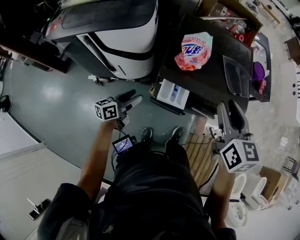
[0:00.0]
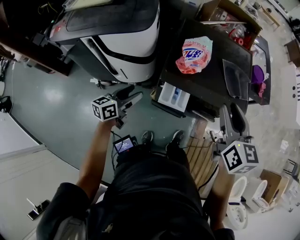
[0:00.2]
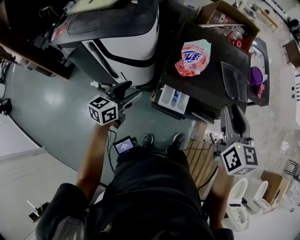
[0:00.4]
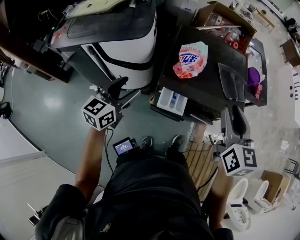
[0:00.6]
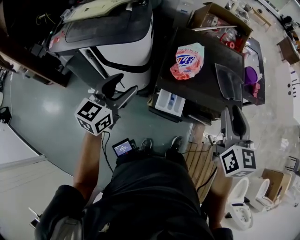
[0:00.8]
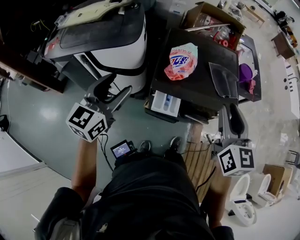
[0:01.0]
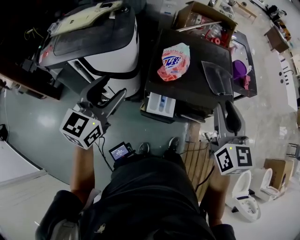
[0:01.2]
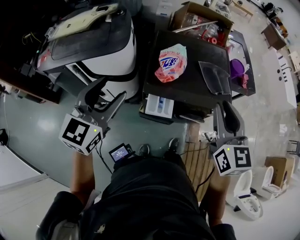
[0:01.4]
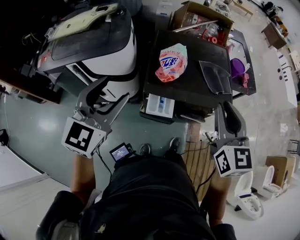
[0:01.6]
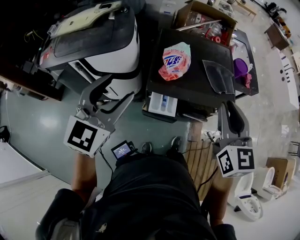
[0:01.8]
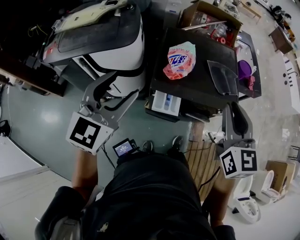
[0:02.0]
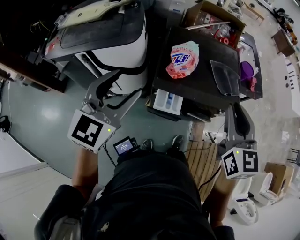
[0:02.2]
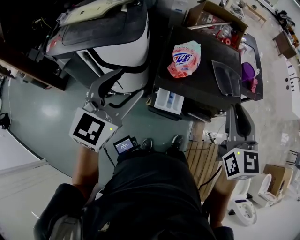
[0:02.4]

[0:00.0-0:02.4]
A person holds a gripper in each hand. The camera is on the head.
0:00.0 to 0:01.2: The left gripper travels upward by roughly 30 cm, and twists roughly 50 degrees clockwise, seen from behind. The right gripper travels upward by approximately 5 cm.
0:01.2 to 0:02.4: There are only small adjustments of the grippers.

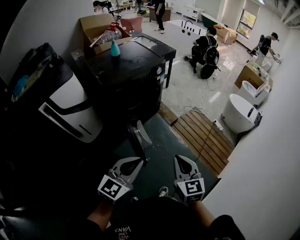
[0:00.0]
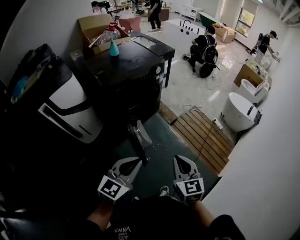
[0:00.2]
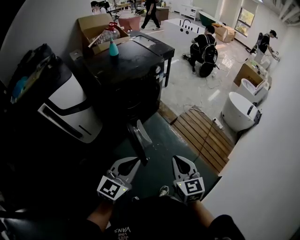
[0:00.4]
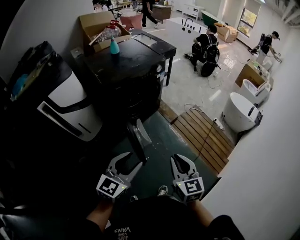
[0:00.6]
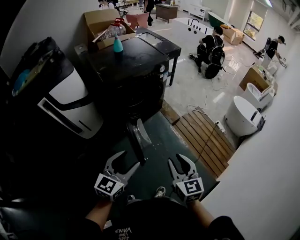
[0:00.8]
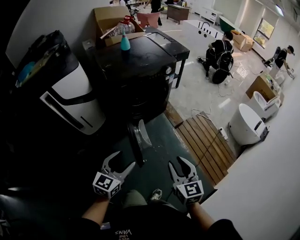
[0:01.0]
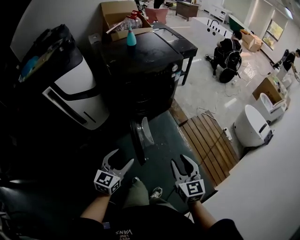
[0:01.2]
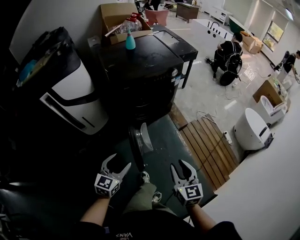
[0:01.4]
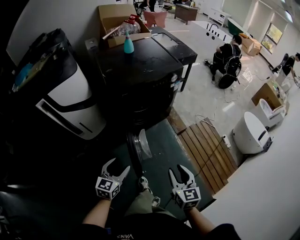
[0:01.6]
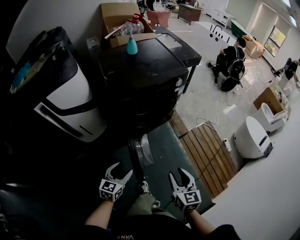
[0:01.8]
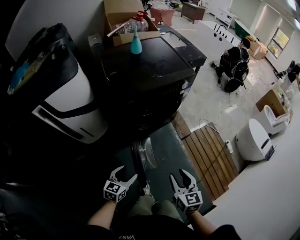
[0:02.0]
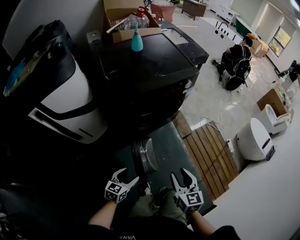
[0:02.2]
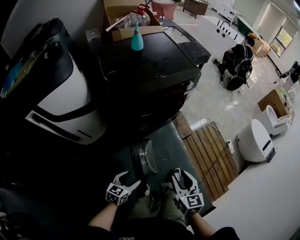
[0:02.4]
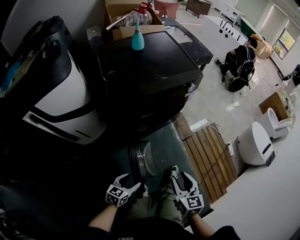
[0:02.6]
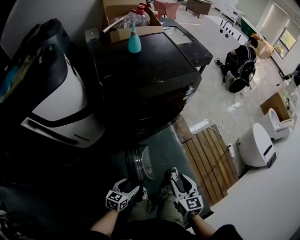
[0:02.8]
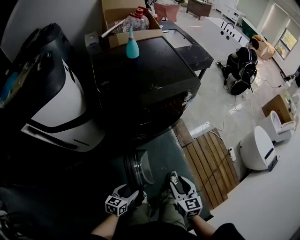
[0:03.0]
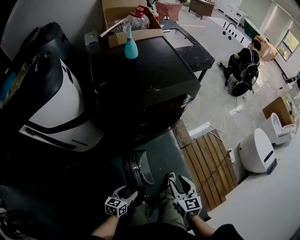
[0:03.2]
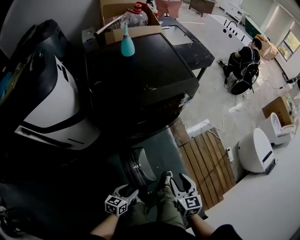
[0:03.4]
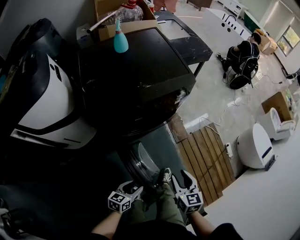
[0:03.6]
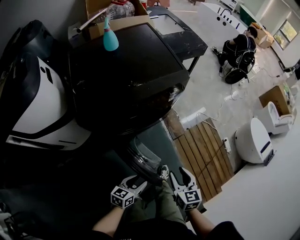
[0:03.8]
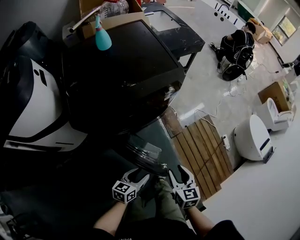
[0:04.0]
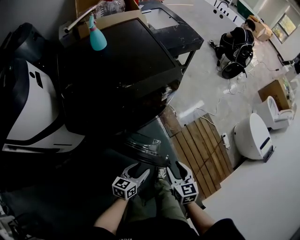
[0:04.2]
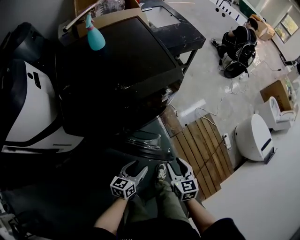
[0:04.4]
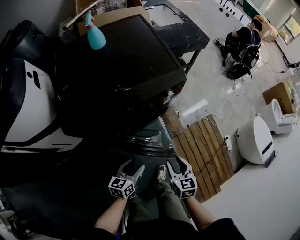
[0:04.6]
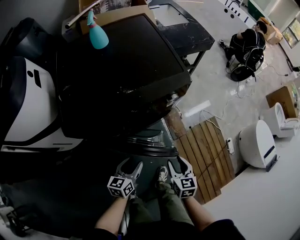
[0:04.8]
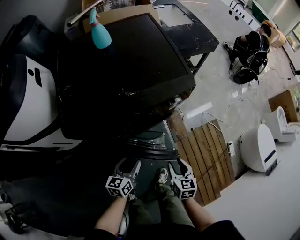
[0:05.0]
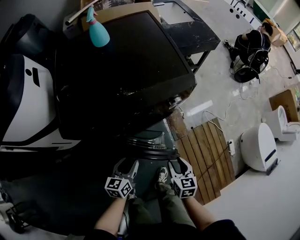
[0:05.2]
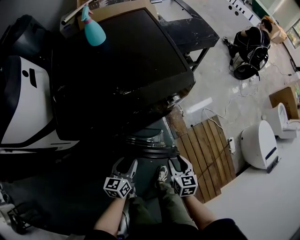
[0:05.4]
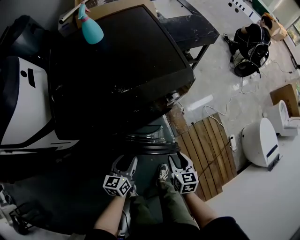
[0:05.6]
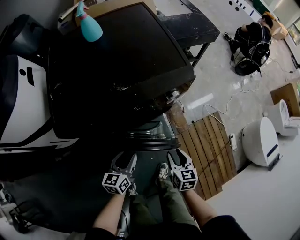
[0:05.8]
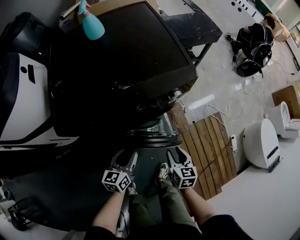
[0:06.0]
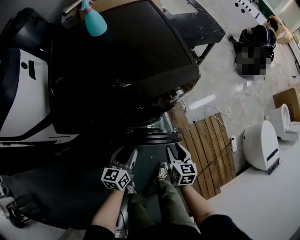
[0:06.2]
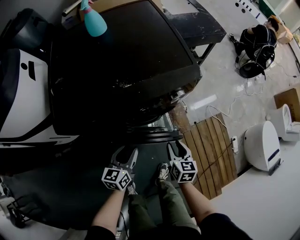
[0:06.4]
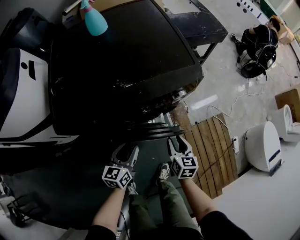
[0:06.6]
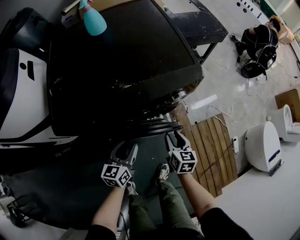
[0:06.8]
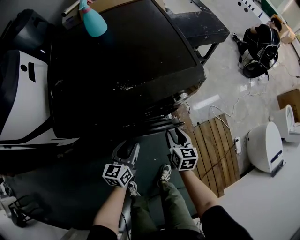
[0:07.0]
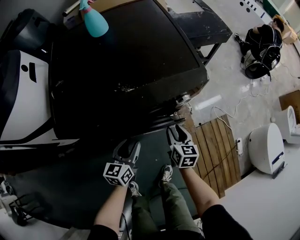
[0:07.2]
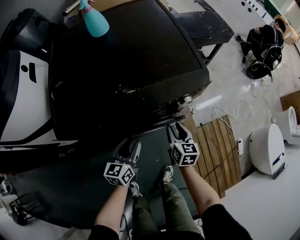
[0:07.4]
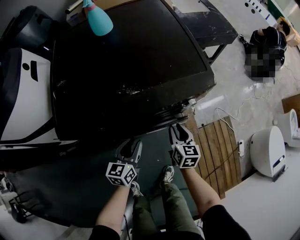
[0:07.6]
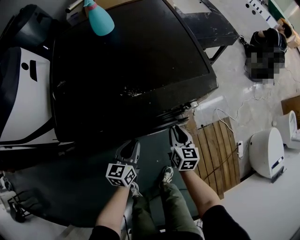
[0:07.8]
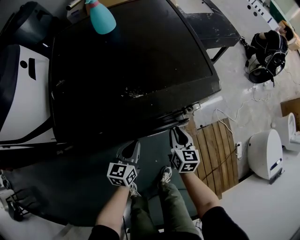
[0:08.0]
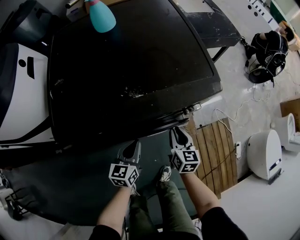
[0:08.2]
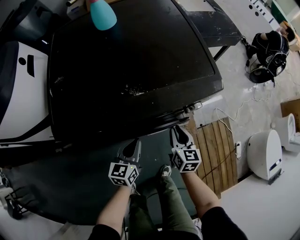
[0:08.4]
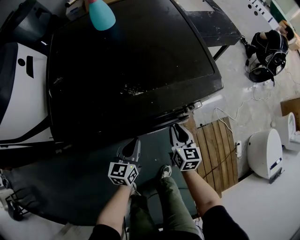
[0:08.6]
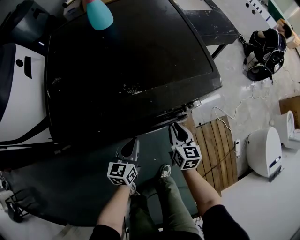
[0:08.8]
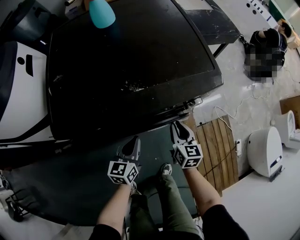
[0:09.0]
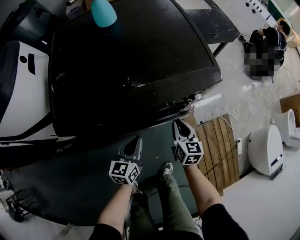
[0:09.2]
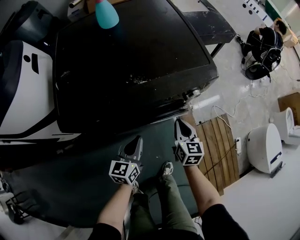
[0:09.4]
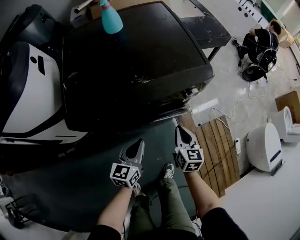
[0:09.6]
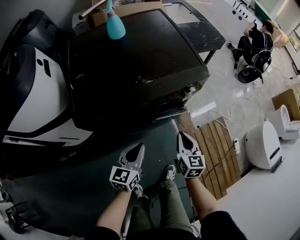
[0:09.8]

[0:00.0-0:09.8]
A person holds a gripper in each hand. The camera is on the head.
0:00.0 to 0:01.4: The left gripper shifts about 15 cm downward, forward and to the left, swivels roughly 30 degrees, and opens. Meanwhile the right gripper travels forward and downward by roughly 10 cm, and opens its fingers.
0:01.4 to 0:02.8: The right gripper heads forward and downward, covering roughly 20 cm. Meanwhile the left gripper travels downward and forward by approximately 20 cm, and rotates approximately 30 degrees.
0:02.8 to 0:04.2: The two grippers go about 20 cm forward and to the right.
0:04.2 to 0:05.6: The left gripper shifts about 15 cm forward and to the left, and changes its angle by some 20 degrees; the right gripper shifts some 15 cm forward and downward.
0:05.6 to 0:07.0: The left gripper moves forward, some 5 cm, while the right gripper heads forward, covering some 15 cm.
0:07.0 to 0:08.4: The left gripper closes its fingers. Meanwhile the right gripper closes.
0:08.4 to 0:09.8: The left gripper heads upward and backward, covering about 15 cm; the right gripper is displaced backward and upward by roughly 15 cm.

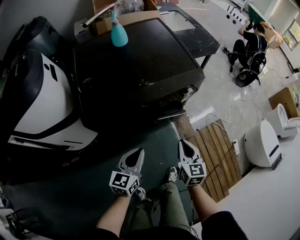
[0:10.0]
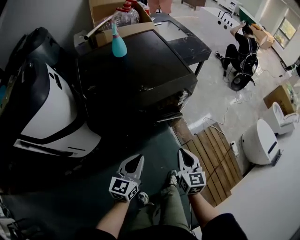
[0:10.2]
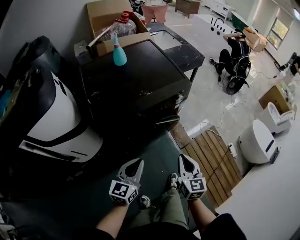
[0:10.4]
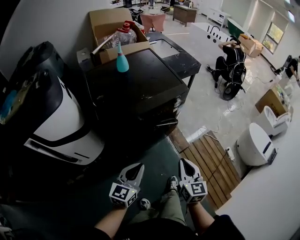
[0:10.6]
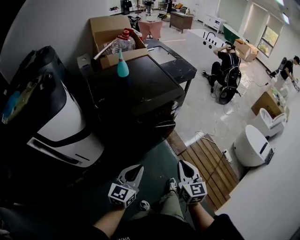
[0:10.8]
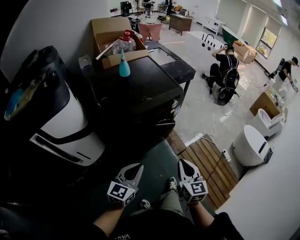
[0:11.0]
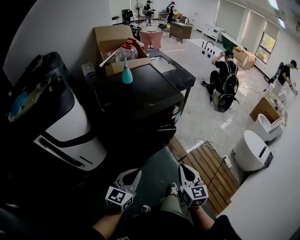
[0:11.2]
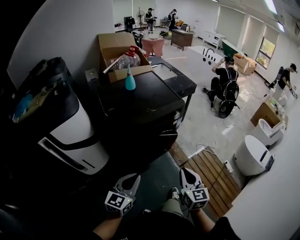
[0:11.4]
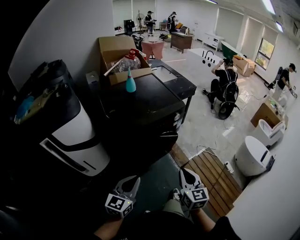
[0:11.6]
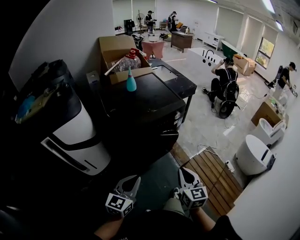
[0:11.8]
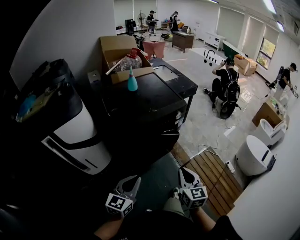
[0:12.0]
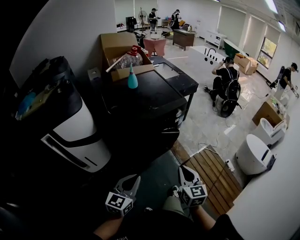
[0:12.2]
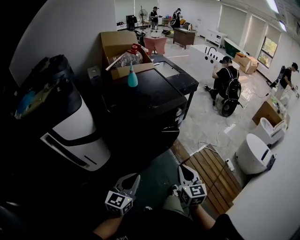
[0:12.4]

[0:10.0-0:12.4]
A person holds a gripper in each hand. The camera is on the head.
0:10.0 to 0:11.2: The two grippers go approximately 25 cm backward and upward.
0:11.2 to 0:12.4: The grippers move only a little.

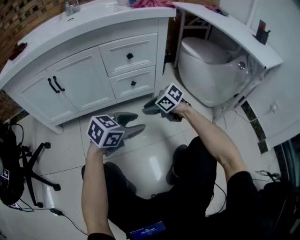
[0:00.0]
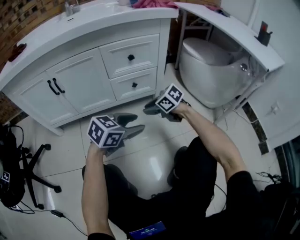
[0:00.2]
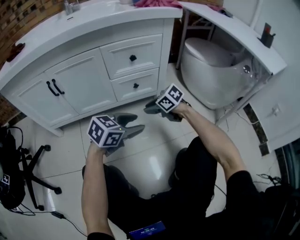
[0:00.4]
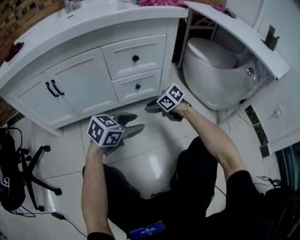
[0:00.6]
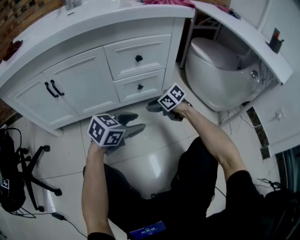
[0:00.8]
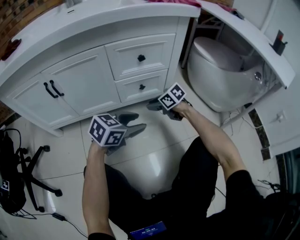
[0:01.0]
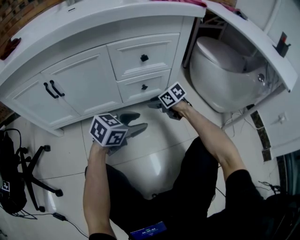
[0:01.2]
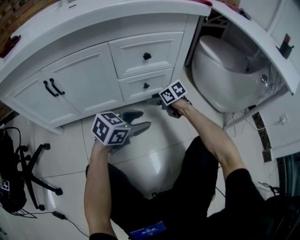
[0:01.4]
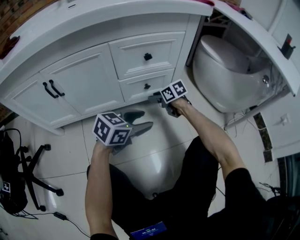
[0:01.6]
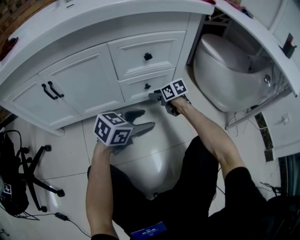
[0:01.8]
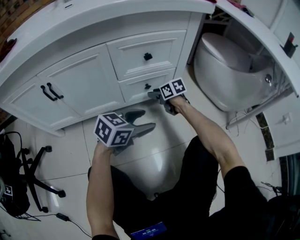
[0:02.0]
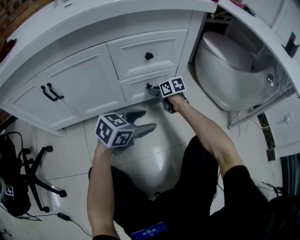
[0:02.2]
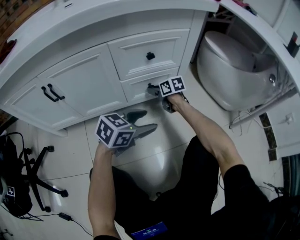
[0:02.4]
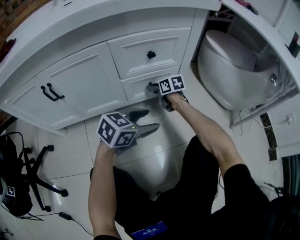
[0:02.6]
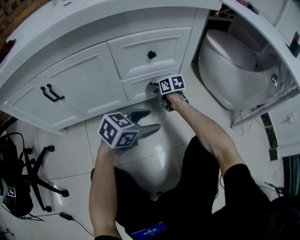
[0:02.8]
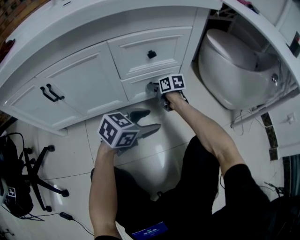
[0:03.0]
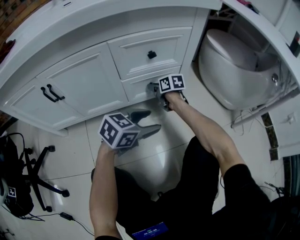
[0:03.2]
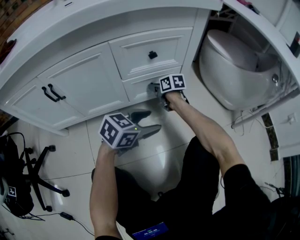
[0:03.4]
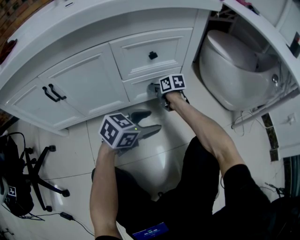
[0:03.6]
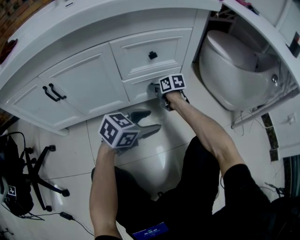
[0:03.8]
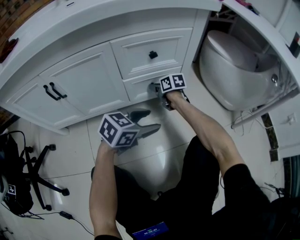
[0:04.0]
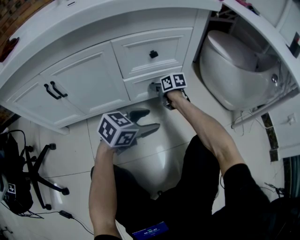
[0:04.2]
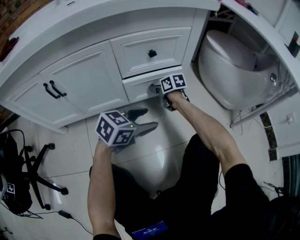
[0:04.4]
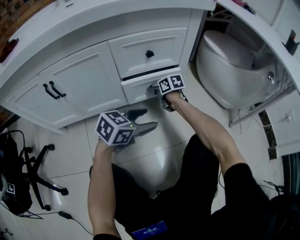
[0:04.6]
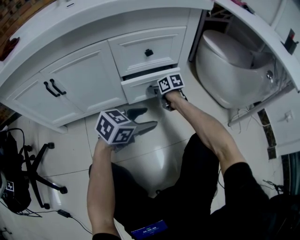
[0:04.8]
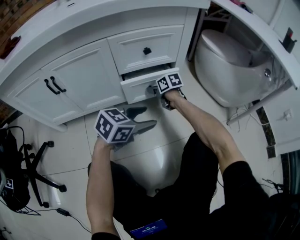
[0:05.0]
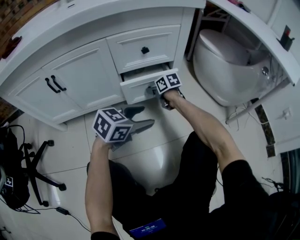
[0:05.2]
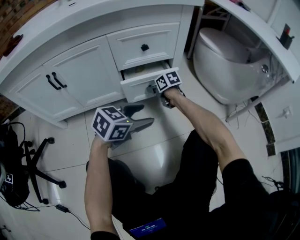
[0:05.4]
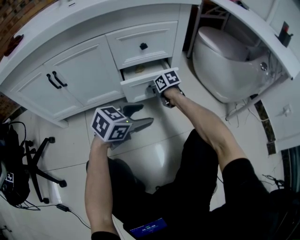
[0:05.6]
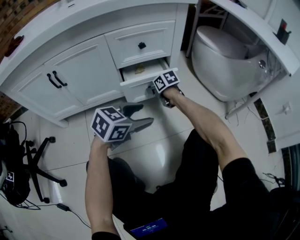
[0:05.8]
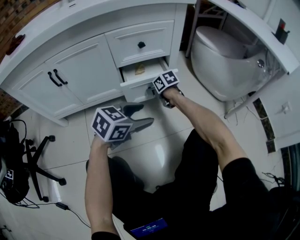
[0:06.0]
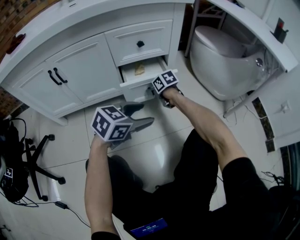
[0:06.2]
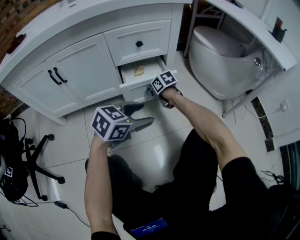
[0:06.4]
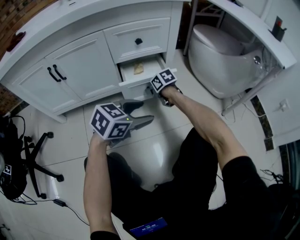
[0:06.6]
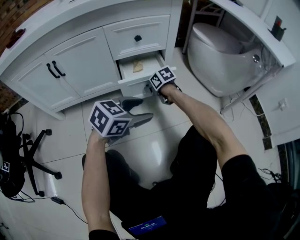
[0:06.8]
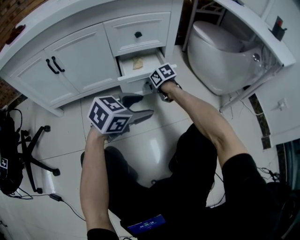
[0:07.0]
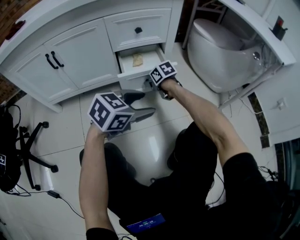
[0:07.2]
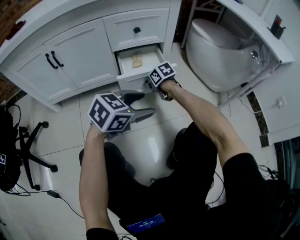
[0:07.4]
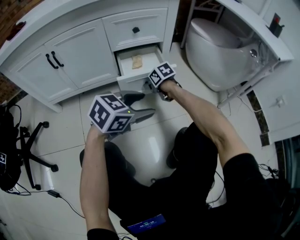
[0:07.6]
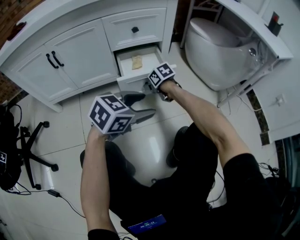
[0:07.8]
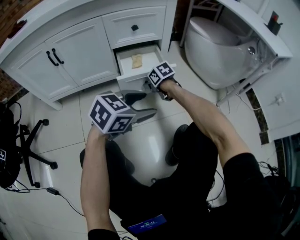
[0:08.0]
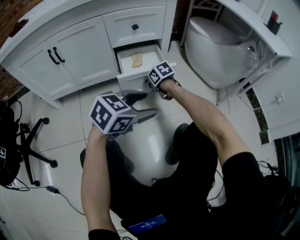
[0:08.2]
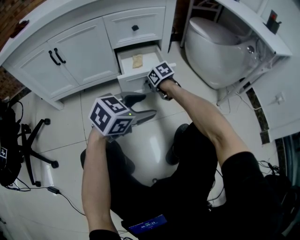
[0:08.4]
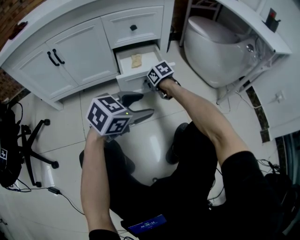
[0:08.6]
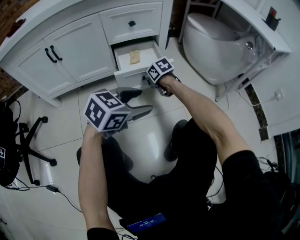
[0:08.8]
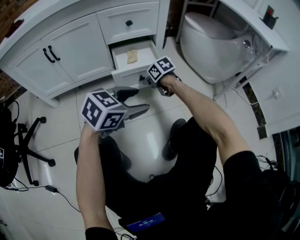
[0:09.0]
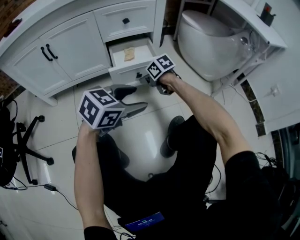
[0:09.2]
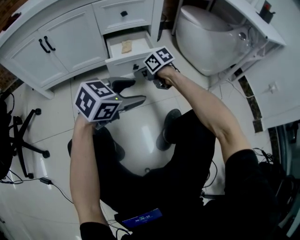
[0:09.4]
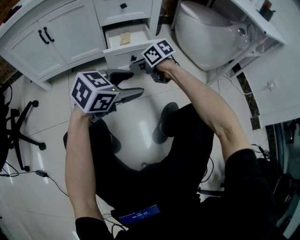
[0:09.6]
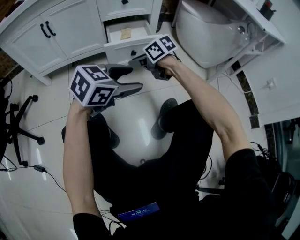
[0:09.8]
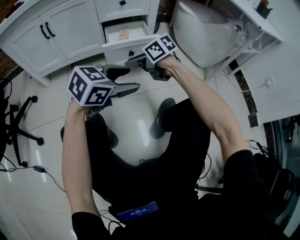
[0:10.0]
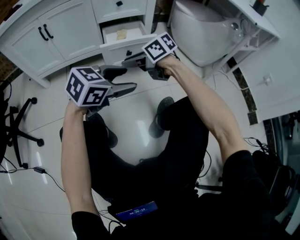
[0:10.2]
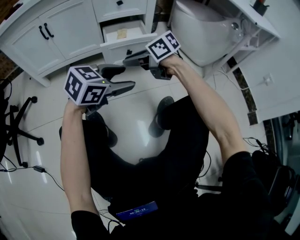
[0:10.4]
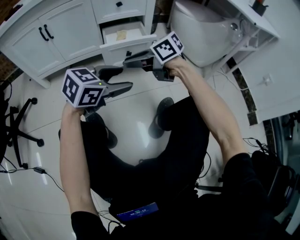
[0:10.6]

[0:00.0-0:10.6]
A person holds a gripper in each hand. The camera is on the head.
0:00.0 to 0:01.6: The right gripper shifts by roughly 20 cm, and changes its angle by some 20 degrees. The left gripper ends up roughly 15 cm from where it was.
0:01.6 to 0:03.0: The right gripper shifts approximately 5 cm forward.
0:03.0 to 0:04.6: The grippers move only a little.
0:04.6 to 0:06.0: Both grippers move backward, roughly 10 cm.
0:06.0 to 0:07.6: The right gripper moves some 10 cm, while the left gripper shifts by approximately 5 cm.
0:07.6 to 0:09.0: The grippers stay close to where they were, moving slightly.
0:09.0 to 0:10.6: The left gripper ends up some 5 cm from where it was. Meanwhile the right gripper travels upward by roughly 20 cm, and turns by about 30 degrees.
